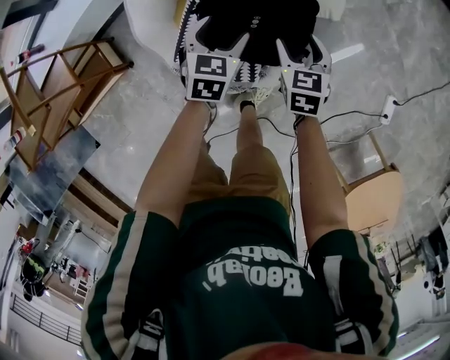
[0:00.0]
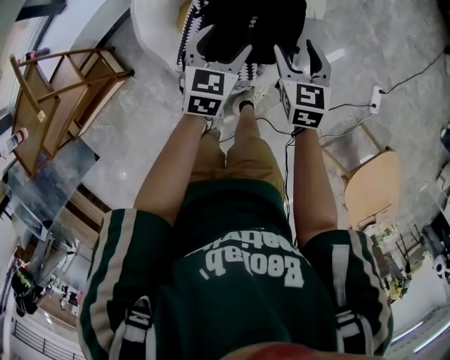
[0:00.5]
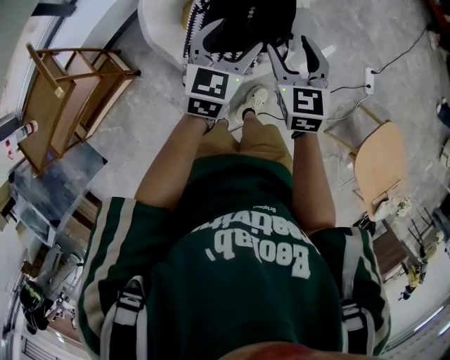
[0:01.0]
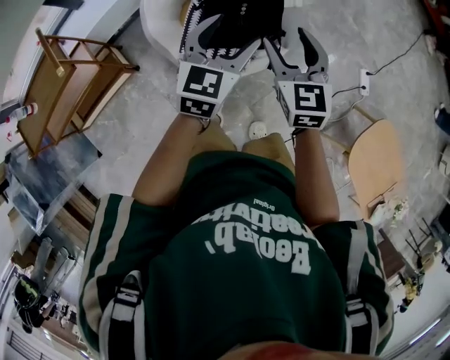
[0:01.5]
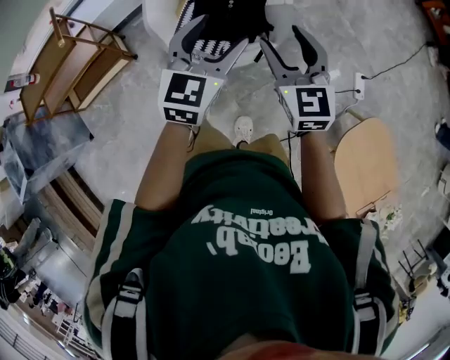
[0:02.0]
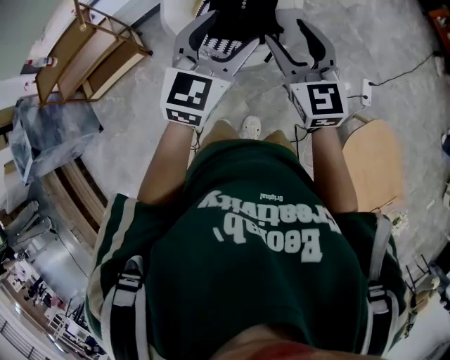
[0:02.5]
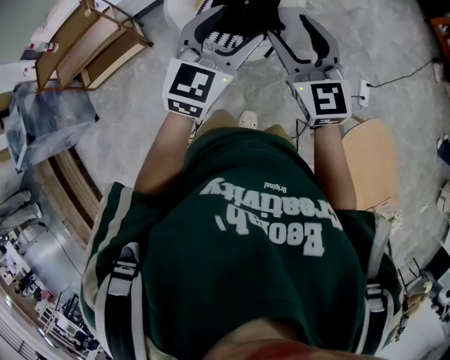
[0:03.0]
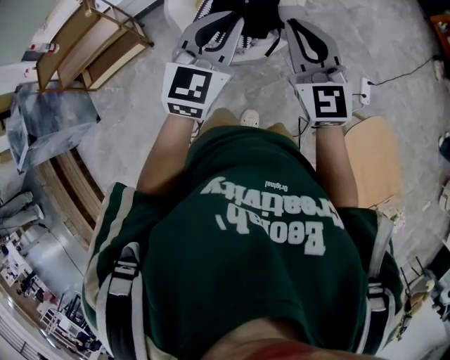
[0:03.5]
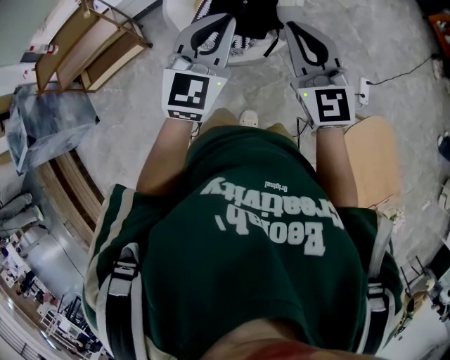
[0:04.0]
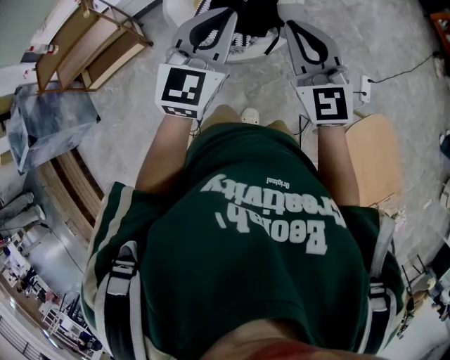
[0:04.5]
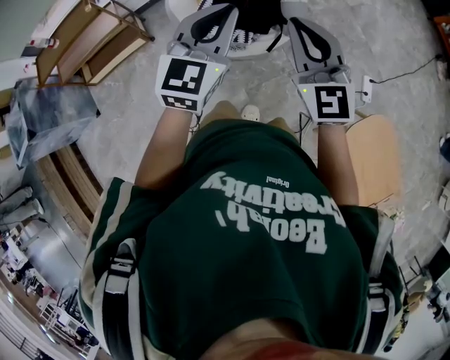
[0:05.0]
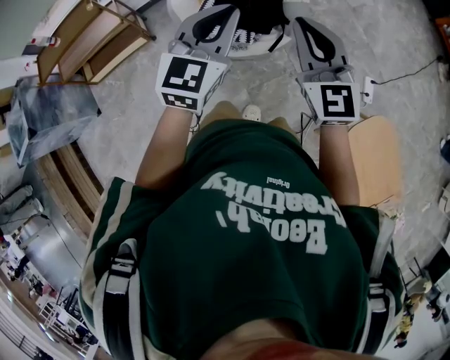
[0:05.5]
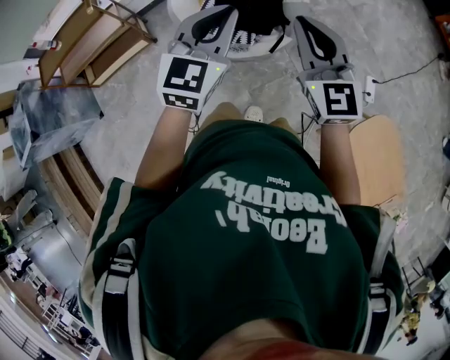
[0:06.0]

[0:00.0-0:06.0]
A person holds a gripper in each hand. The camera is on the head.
0:00.0 to 0:02.0: The two grippers travel together, backward, some 50 cm. The two grippers go some 50 cm upward. The left gripper swivels roughly 30 degrees. Meanwhile the right gripper angles its fingers upward, by roughly 30 degrees.
0:02.0 to 0:04.0: The two grippers go approximately 20 cm backward and upward. The left gripper closes its fingers, while the right gripper closes its fingers.
0:04.0 to 0:06.0: The grippers move only a little.

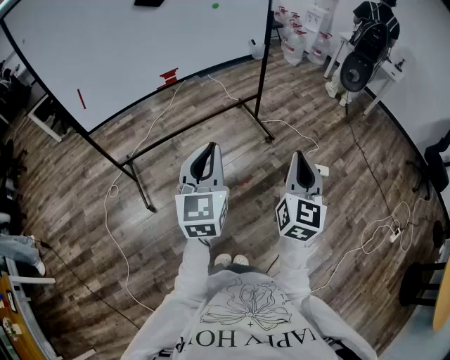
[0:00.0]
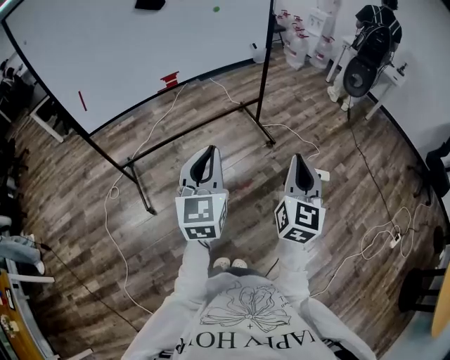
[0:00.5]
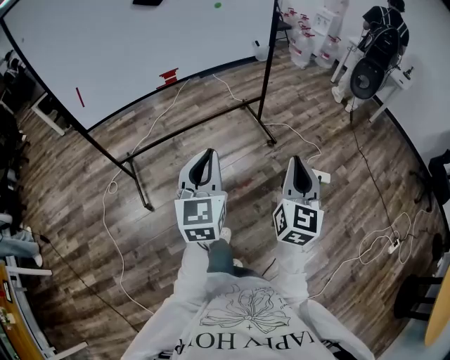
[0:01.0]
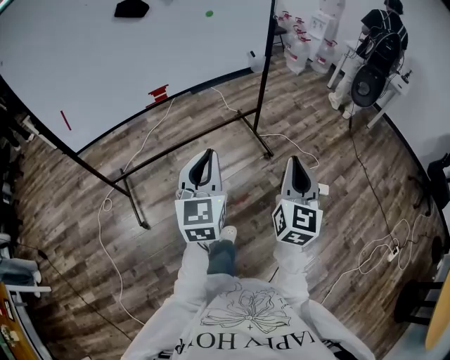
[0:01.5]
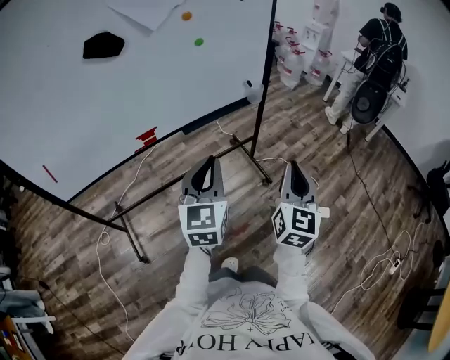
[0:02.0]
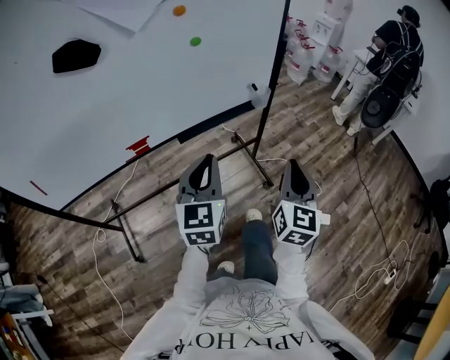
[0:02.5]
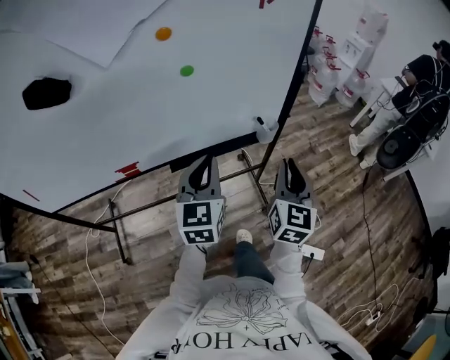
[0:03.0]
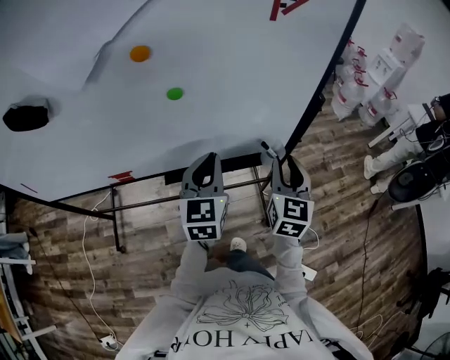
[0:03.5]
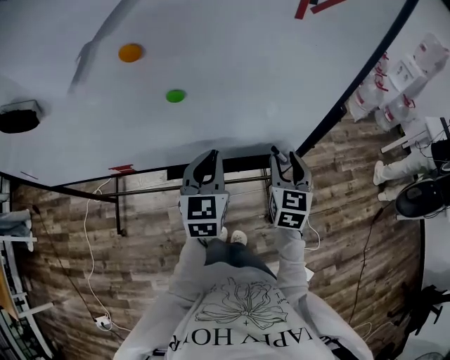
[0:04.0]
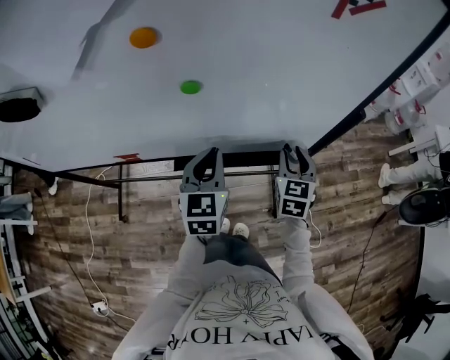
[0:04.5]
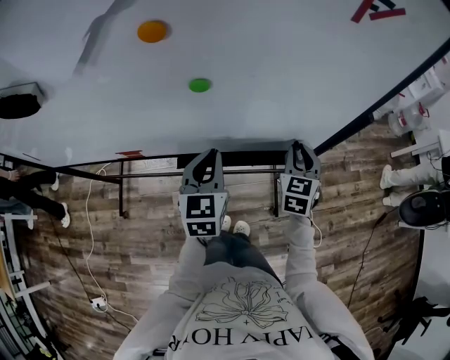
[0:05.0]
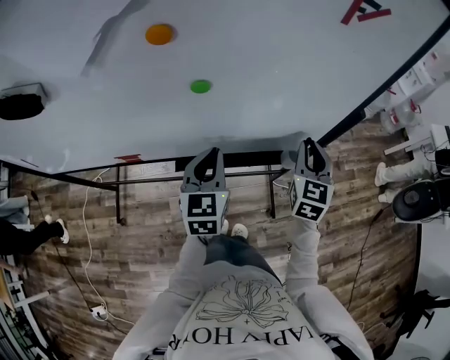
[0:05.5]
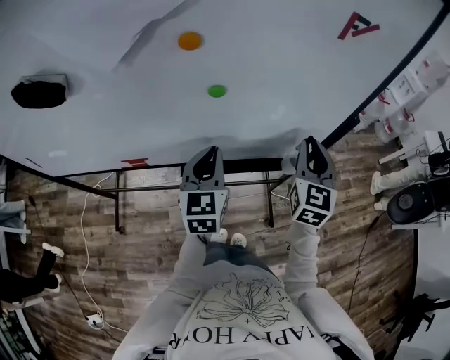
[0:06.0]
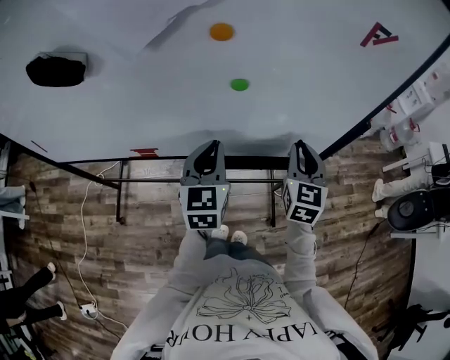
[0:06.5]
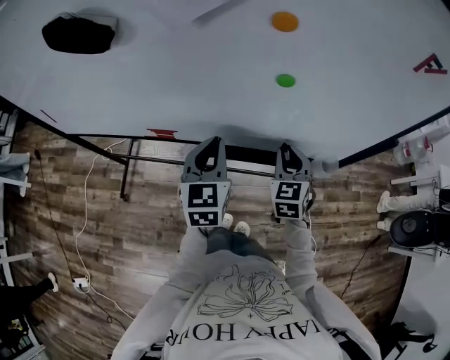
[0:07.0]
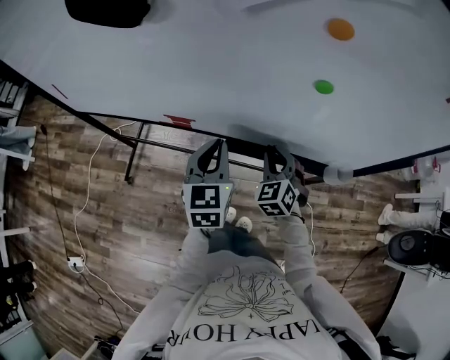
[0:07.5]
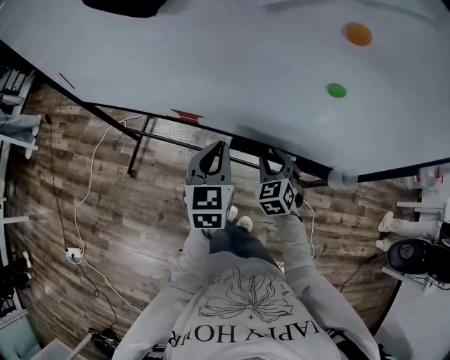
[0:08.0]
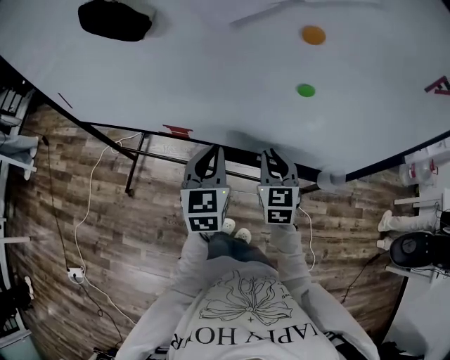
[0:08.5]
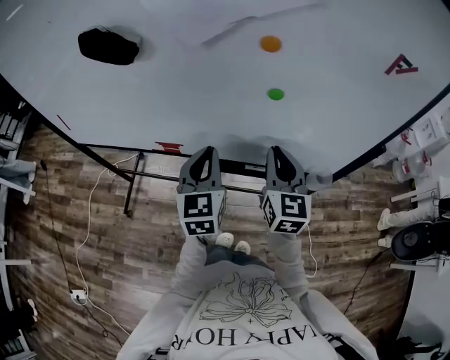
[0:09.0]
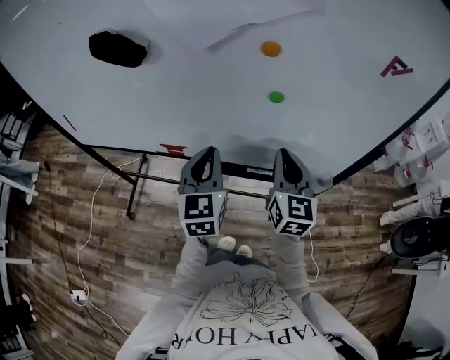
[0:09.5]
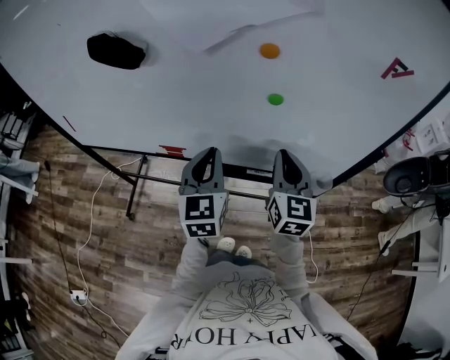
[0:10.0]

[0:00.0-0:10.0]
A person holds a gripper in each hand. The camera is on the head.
0:00.0 to 0:02.0: Both grippers move forward, about 35 cm.
0:02.0 to 0:04.0: The two grippers travel together, approximately 50 cm. The right gripper turns by some 40 degrees, and opens up; the left gripper rotates roughly 30 degrees.
0:04.0 to 0:06.0: The right gripper heads upward, covering some 10 cm, and closes up; the left gripper is displaced to the left by about 5 cm.
0:06.0 to 0:08.0: The right gripper travels to the left and downward by approximately 35 cm, and changes its angle by approximately 50 degrees, while the left gripper moves to the left and downward, about 15 cm, and turns by roughly 20 degrees.
0:08.0 to 0:10.0: The left gripper shifts about 10 cm upward. The right gripper travels upward by some 20 cm, tips its fingers upward by some 30 degrees, and closes its fingers.

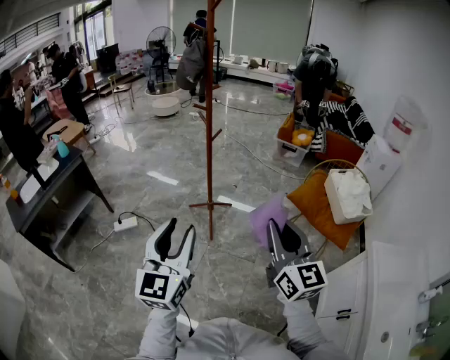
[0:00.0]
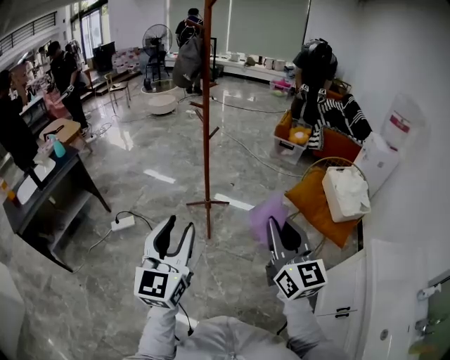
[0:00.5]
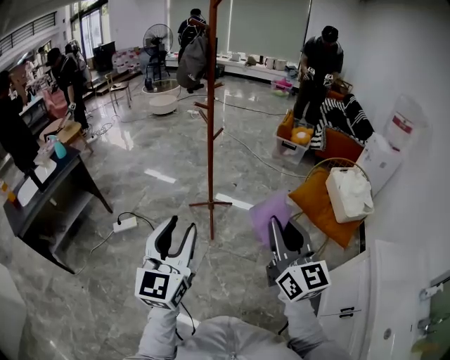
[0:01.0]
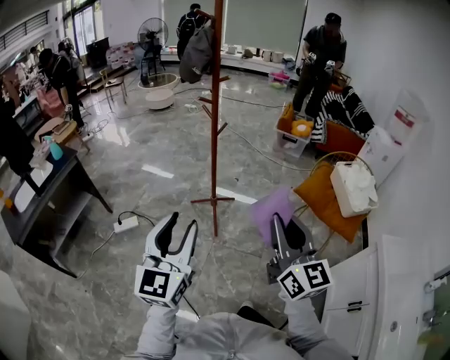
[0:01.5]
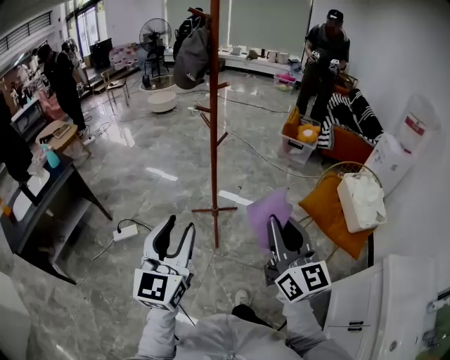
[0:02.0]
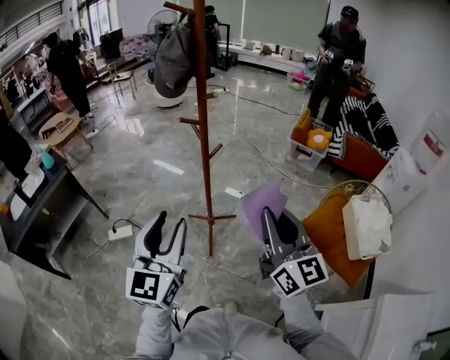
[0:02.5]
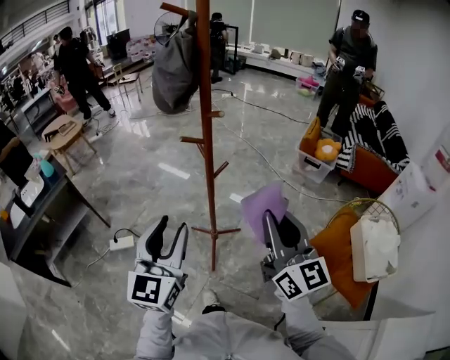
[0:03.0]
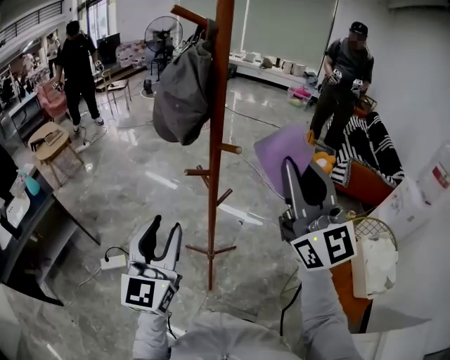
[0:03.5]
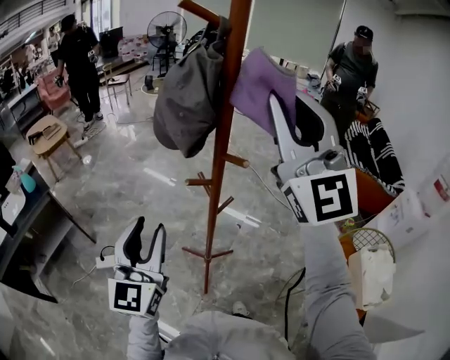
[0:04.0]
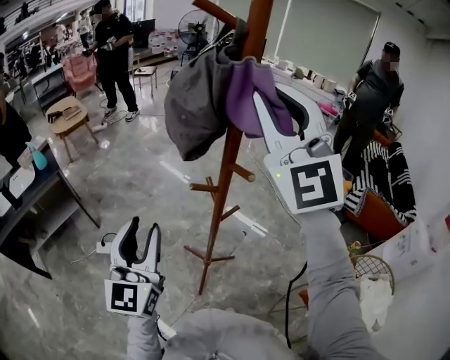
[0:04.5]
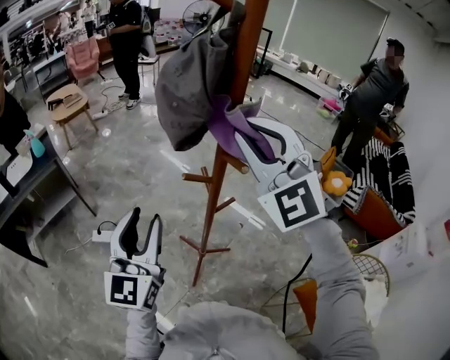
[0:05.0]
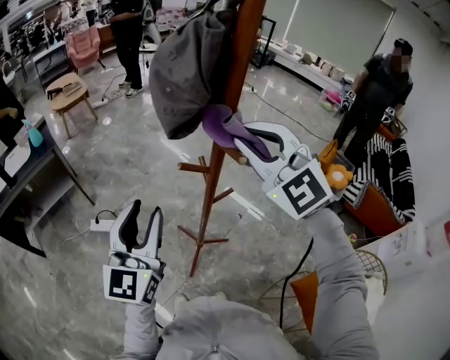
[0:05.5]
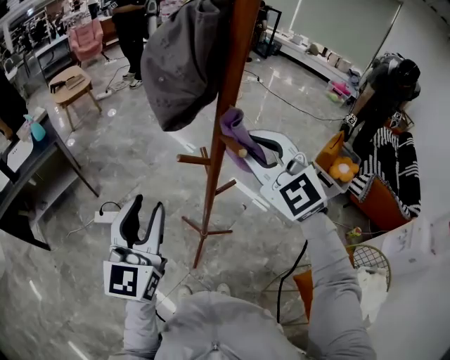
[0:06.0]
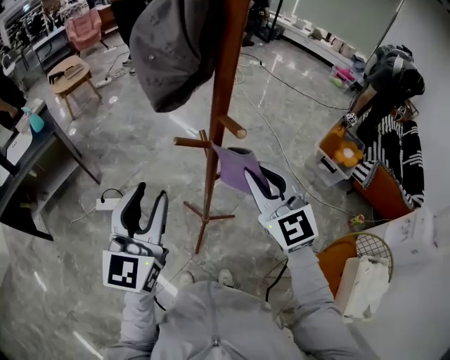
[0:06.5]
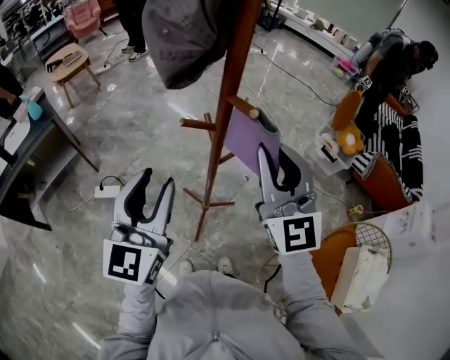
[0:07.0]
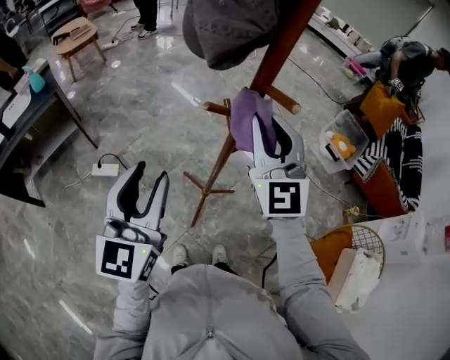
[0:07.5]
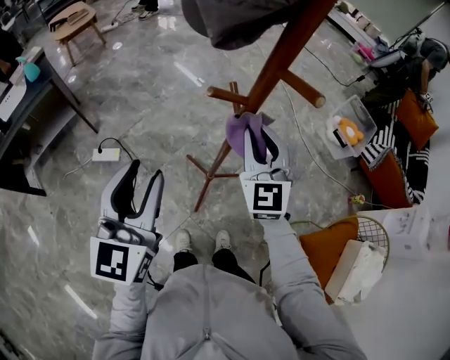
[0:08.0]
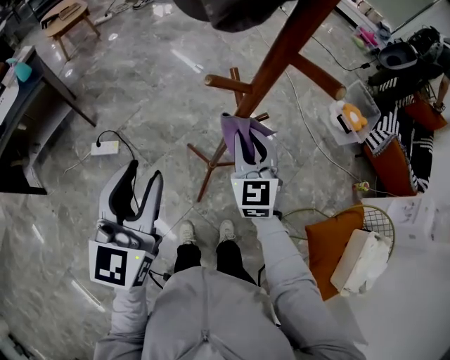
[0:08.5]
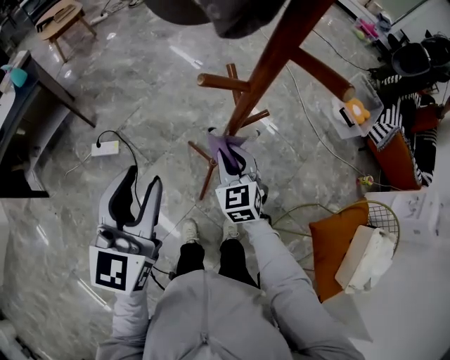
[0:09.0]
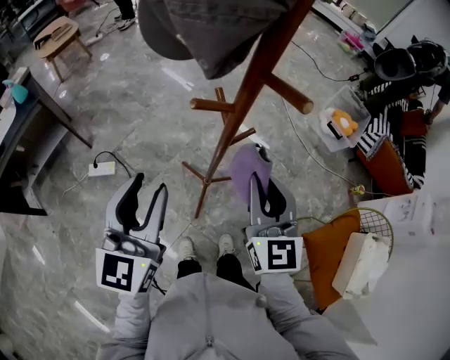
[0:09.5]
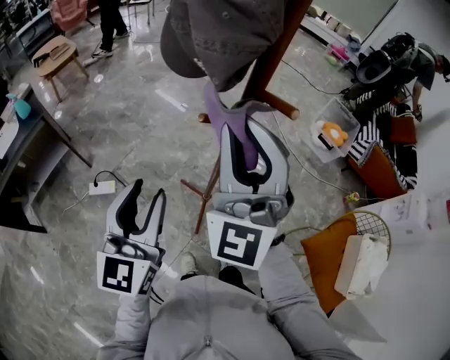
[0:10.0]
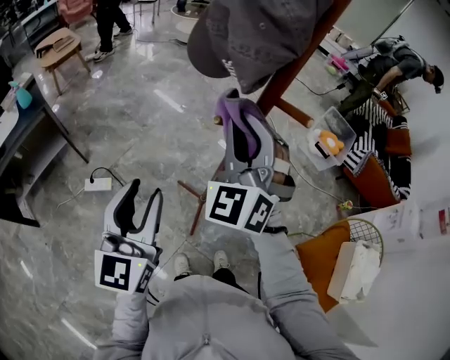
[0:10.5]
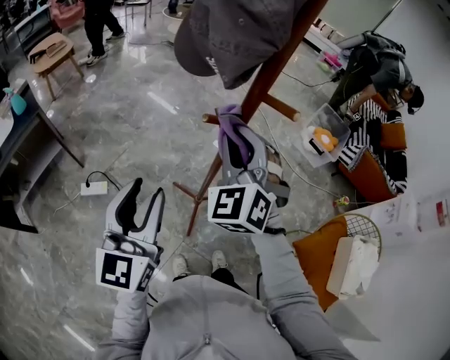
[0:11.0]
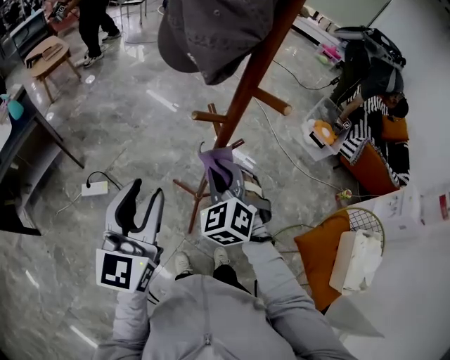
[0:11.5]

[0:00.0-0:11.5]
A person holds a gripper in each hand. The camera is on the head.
0:00.0 to 0:02.0: Both grippers move forward, about 15 cm.
0:02.0 to 0:04.0: The left gripper travels forward by roughly 35 cm; the right gripper heads forward and upward, covering approximately 50 cm, and turns by approximately 50 degrees.
0:04.0 to 0:06.0: The right gripper moves downward, approximately 20 cm, and points its fingers some 40 degrees further downward.
0:06.0 to 0:07.5: The right gripper rotates roughly 30 degrees.
0:07.5 to 0:09.5: The right gripper heads backward, covering approximately 5 cm, moves roughly 30 cm downward and comes back, and rotates approximately 20 degrees.
0:09.5 to 0:11.5: The right gripper goes about 10 cm to the left, moves about 15 cm upward and comes back, and rotates some 50 degrees.
